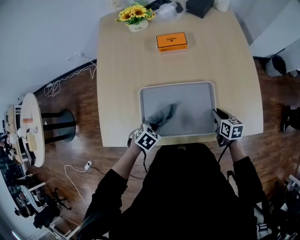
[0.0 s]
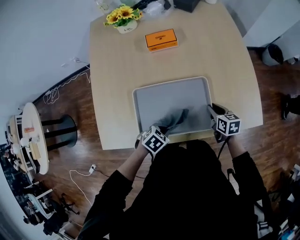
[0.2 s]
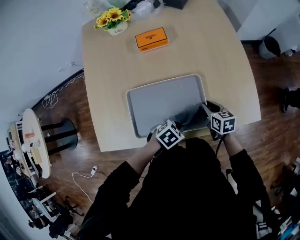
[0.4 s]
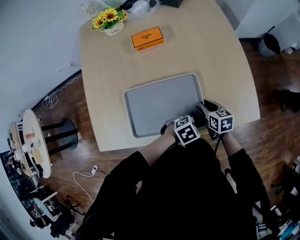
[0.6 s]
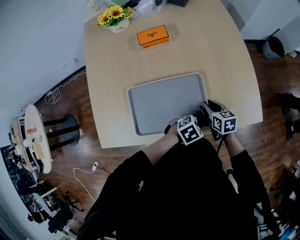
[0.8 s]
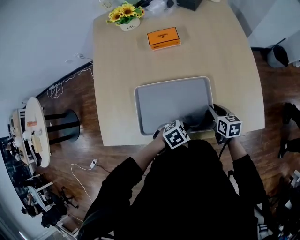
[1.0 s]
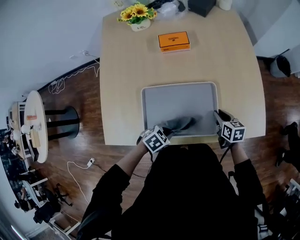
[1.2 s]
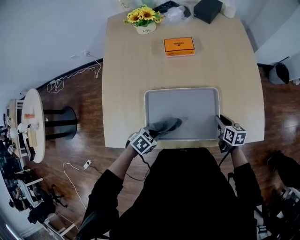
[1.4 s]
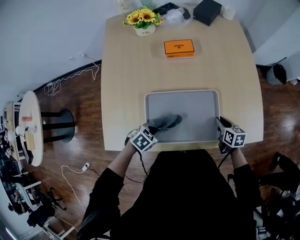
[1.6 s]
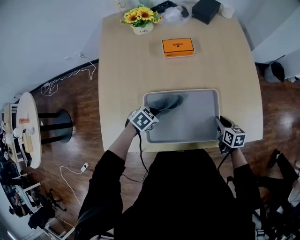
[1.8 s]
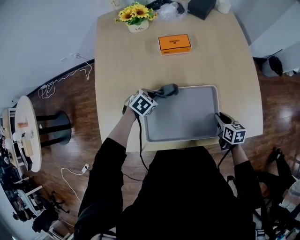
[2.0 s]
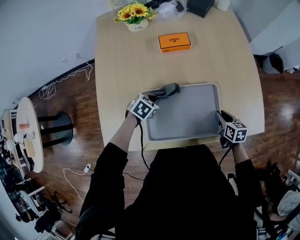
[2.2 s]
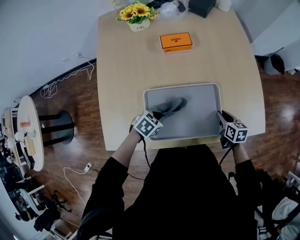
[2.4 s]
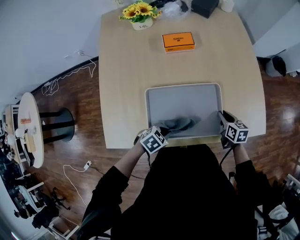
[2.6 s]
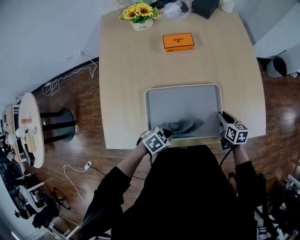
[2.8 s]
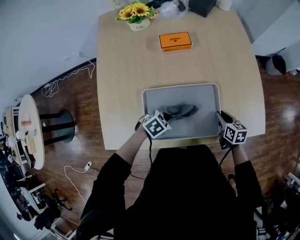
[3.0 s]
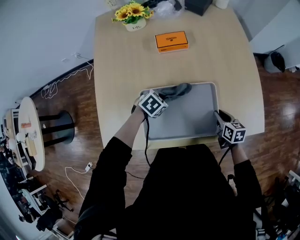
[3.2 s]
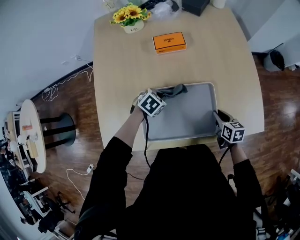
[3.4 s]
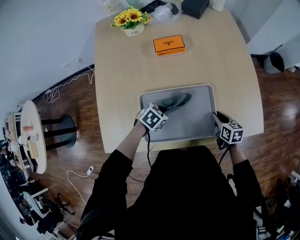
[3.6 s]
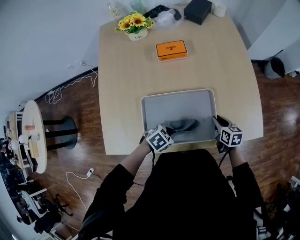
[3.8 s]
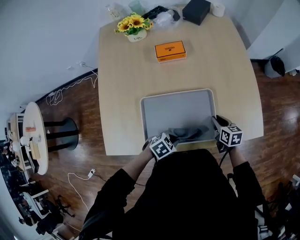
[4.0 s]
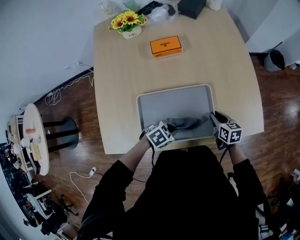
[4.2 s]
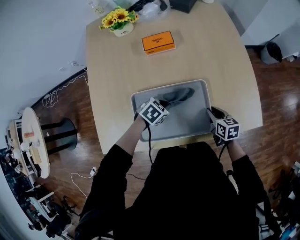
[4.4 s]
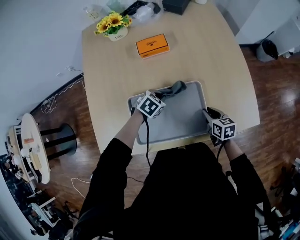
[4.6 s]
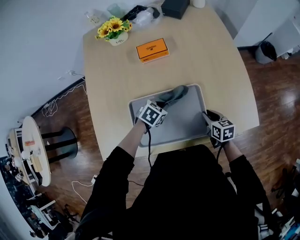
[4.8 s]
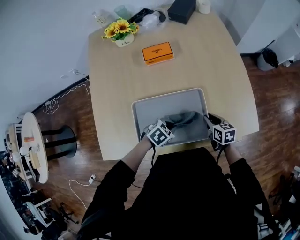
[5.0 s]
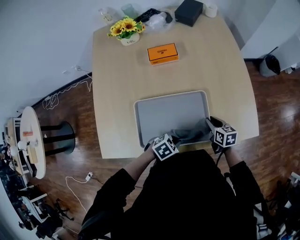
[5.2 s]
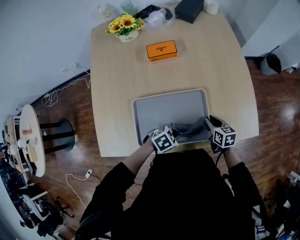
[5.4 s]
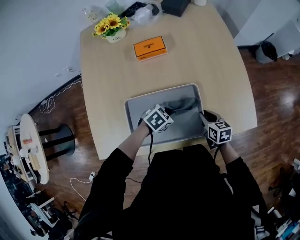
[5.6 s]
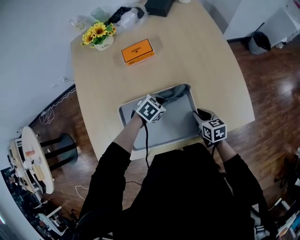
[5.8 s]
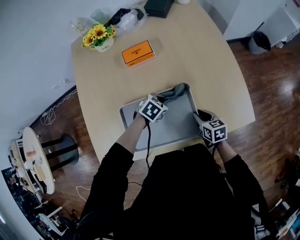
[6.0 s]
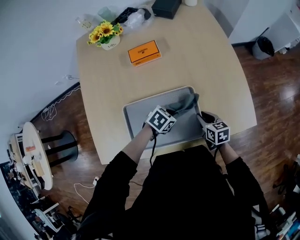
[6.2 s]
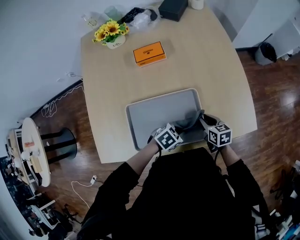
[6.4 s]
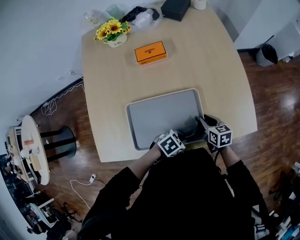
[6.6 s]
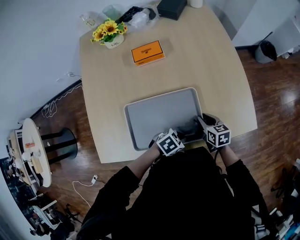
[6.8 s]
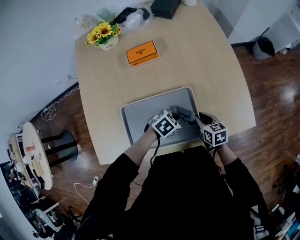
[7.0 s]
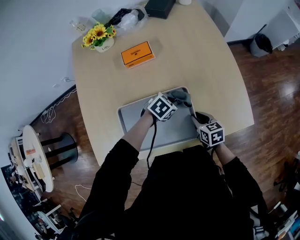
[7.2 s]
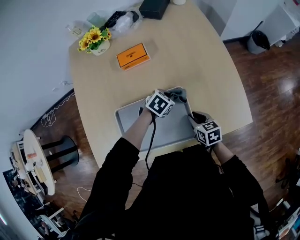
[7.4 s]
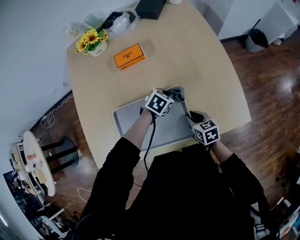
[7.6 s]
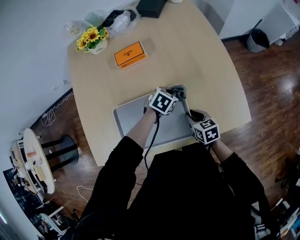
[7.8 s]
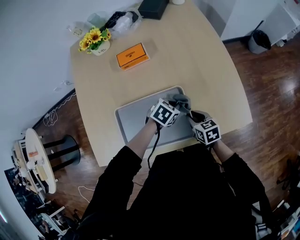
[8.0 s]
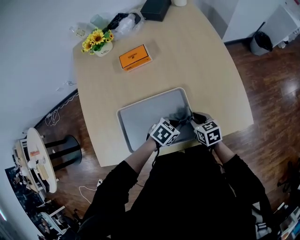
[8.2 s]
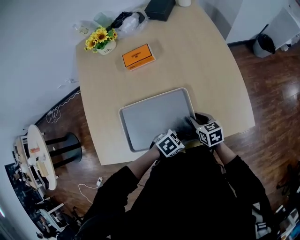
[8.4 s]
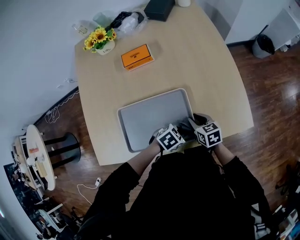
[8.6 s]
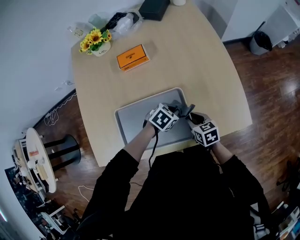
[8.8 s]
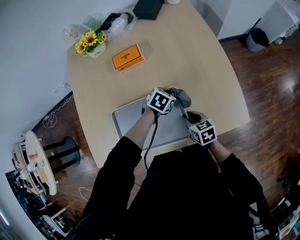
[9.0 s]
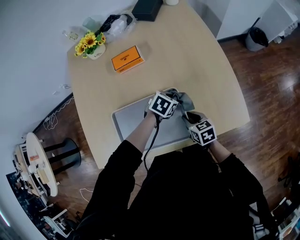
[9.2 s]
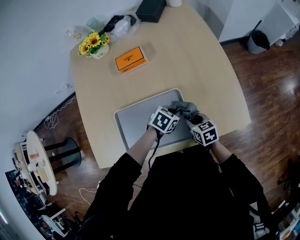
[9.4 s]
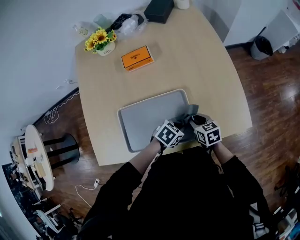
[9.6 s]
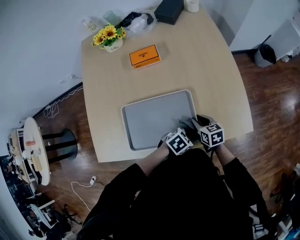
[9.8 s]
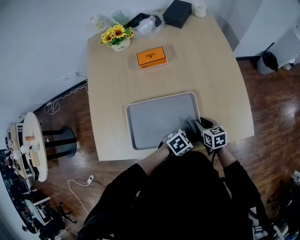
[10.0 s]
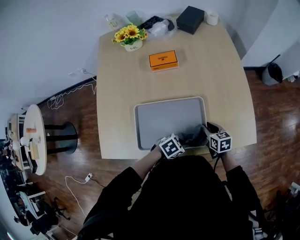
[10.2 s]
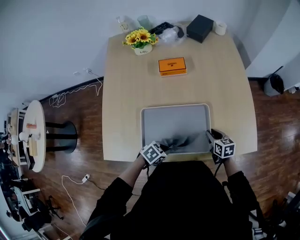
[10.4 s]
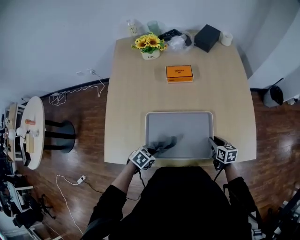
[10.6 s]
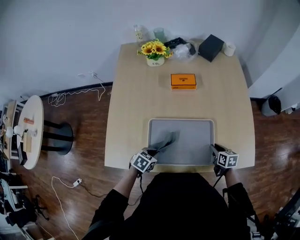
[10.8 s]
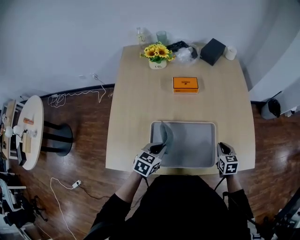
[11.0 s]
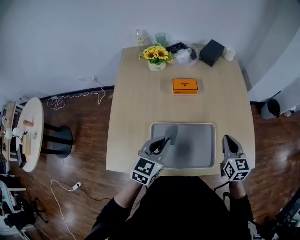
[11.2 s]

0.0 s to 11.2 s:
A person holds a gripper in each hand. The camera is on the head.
1.6 to 3.2 s: The left gripper moves forward and backward over about 15 cm, changing direction 2 times.
3.2 to 4.8 s: The left gripper travels to the right by about 5 cm, and goes backward and returns, about 15 cm each way.
4.8 to 6.4 s: The left gripper moves roughly 15 cm.
6.4 to 8.0 s: The left gripper ends up approximately 15 cm from where it was.
9.6 to 11.2 s: The left gripper moves approximately 35 cm, and tilts its fingers roughly 30 degrees upward. The right gripper travels upward by approximately 20 cm, turns by about 30 degrees, and closes.

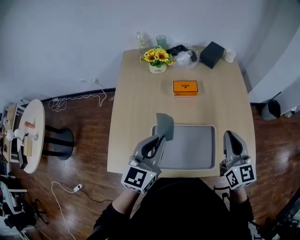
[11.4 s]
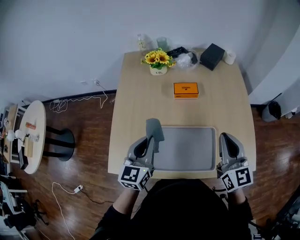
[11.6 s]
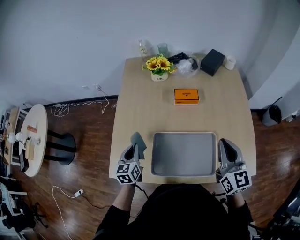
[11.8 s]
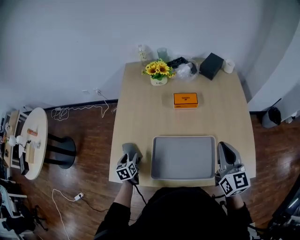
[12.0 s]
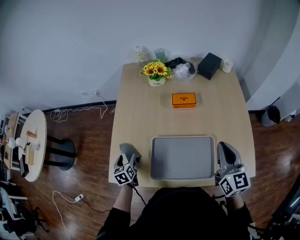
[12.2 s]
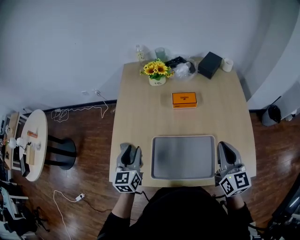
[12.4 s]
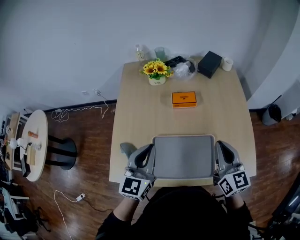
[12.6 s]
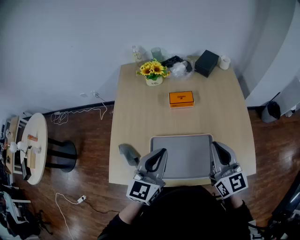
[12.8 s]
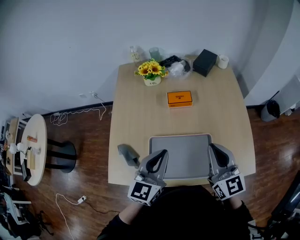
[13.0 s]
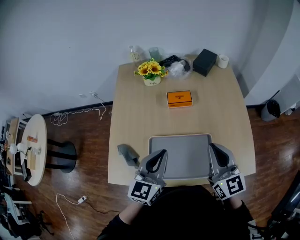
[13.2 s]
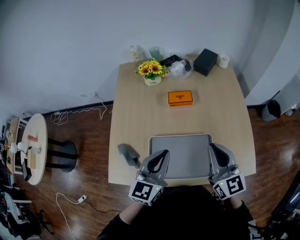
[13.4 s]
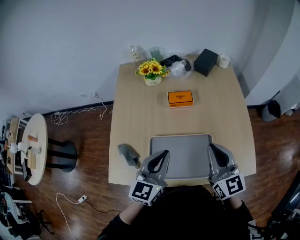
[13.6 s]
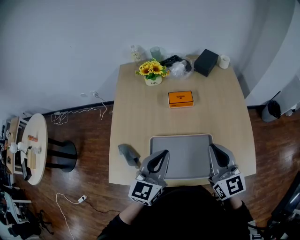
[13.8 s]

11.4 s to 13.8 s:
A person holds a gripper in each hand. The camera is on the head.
11.4 to 12.6 s: The left gripper reaches roughly 30 cm downward, then returns, and opens, then closes again.
12.6 to 13.8 s: The left gripper heads to the right, covering about 5 cm.

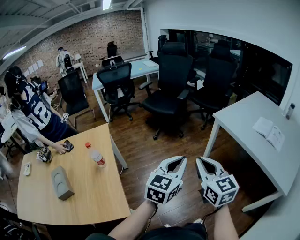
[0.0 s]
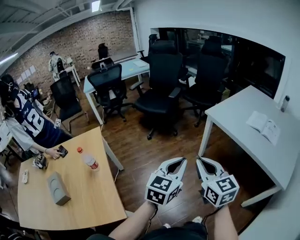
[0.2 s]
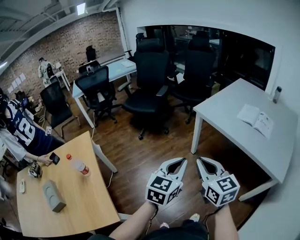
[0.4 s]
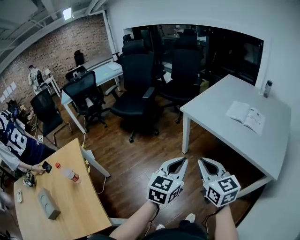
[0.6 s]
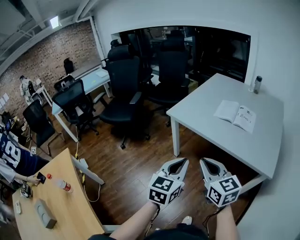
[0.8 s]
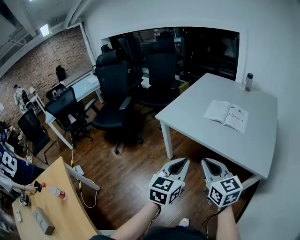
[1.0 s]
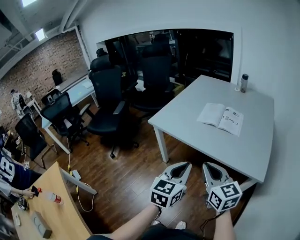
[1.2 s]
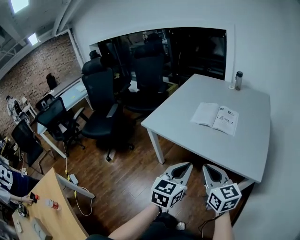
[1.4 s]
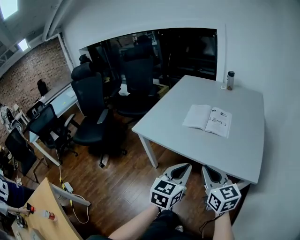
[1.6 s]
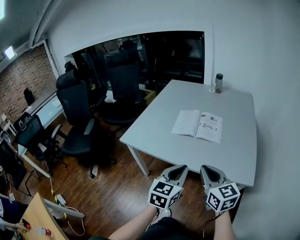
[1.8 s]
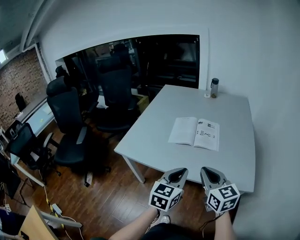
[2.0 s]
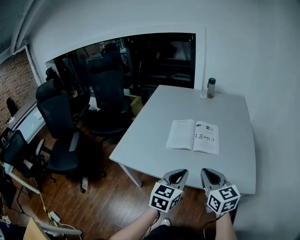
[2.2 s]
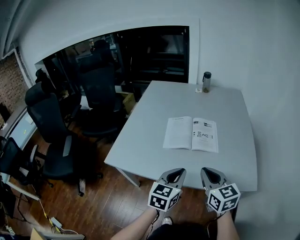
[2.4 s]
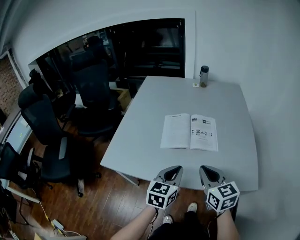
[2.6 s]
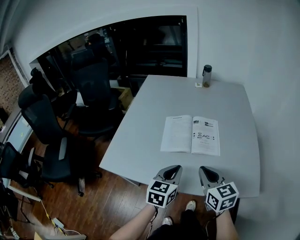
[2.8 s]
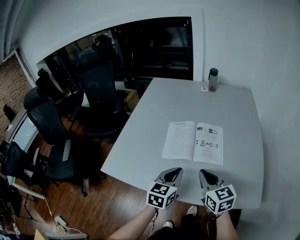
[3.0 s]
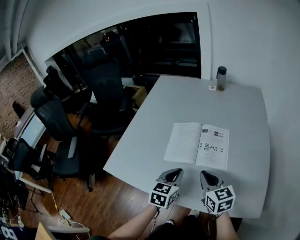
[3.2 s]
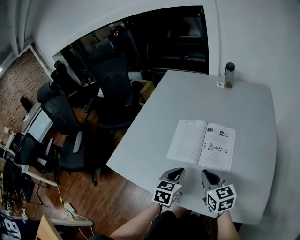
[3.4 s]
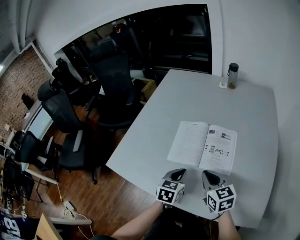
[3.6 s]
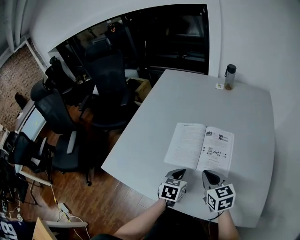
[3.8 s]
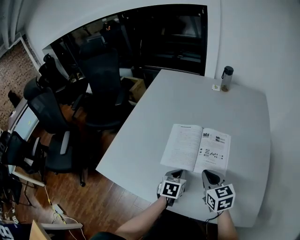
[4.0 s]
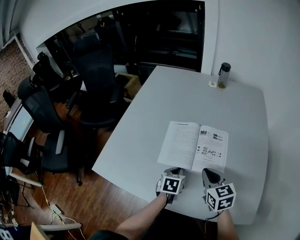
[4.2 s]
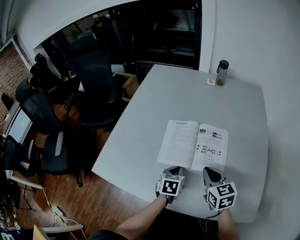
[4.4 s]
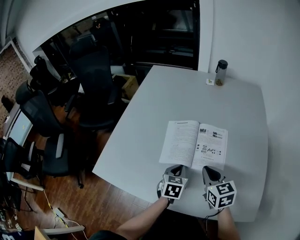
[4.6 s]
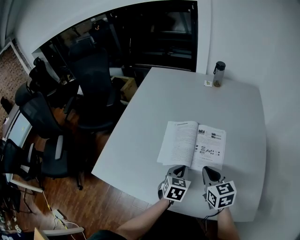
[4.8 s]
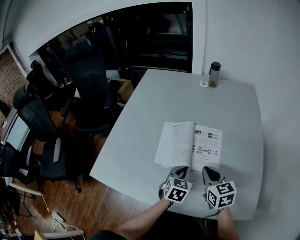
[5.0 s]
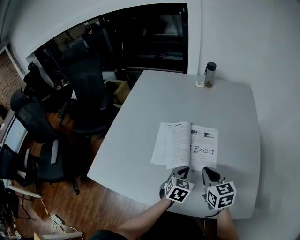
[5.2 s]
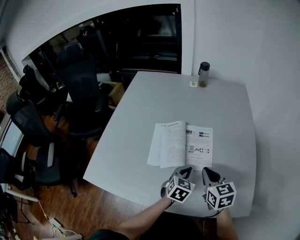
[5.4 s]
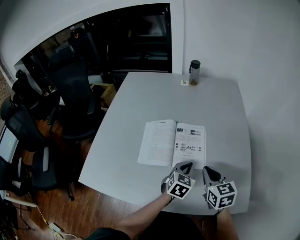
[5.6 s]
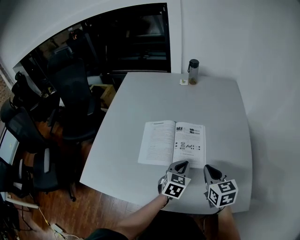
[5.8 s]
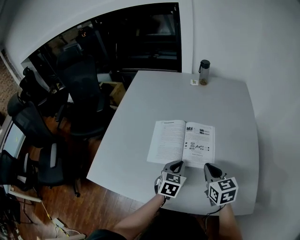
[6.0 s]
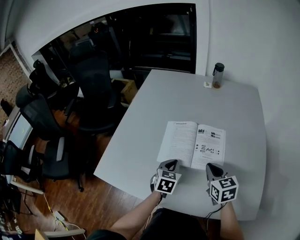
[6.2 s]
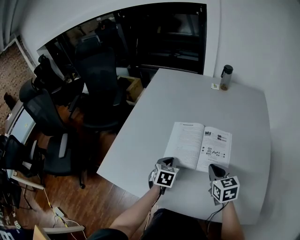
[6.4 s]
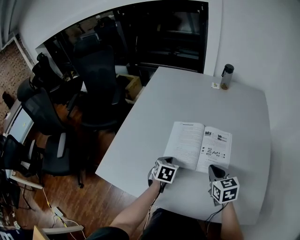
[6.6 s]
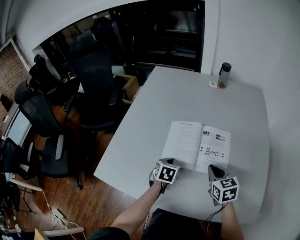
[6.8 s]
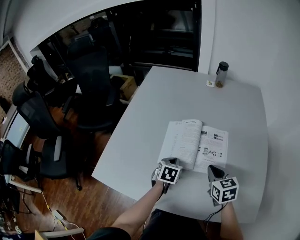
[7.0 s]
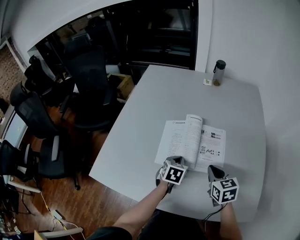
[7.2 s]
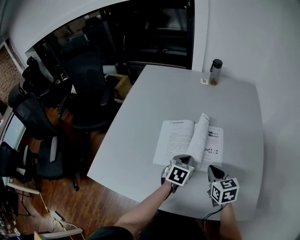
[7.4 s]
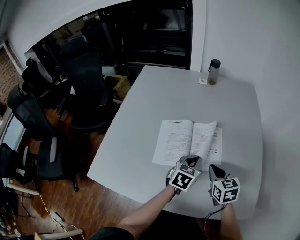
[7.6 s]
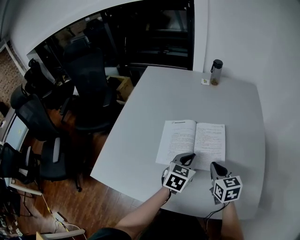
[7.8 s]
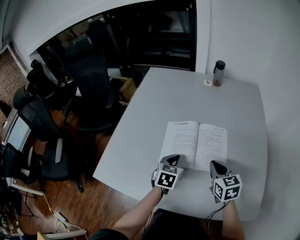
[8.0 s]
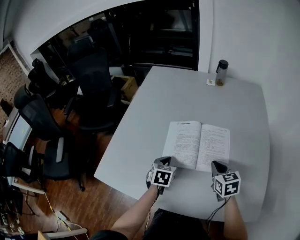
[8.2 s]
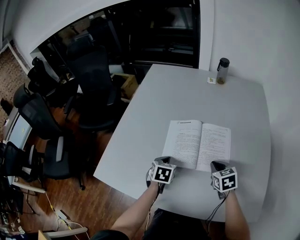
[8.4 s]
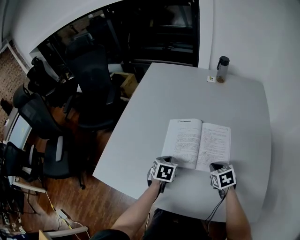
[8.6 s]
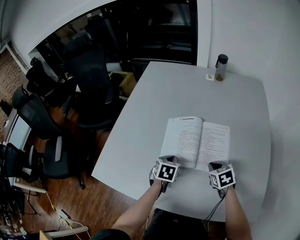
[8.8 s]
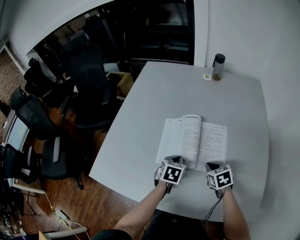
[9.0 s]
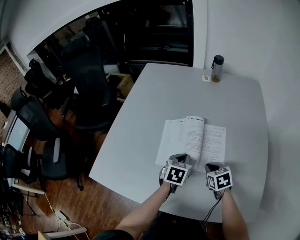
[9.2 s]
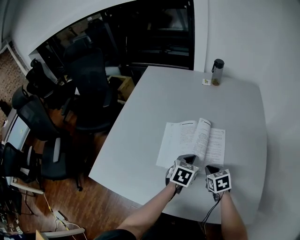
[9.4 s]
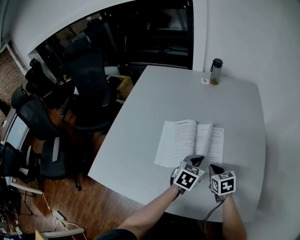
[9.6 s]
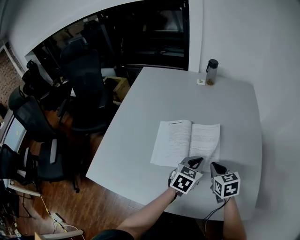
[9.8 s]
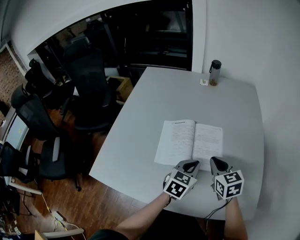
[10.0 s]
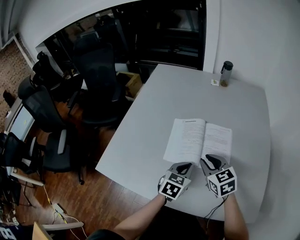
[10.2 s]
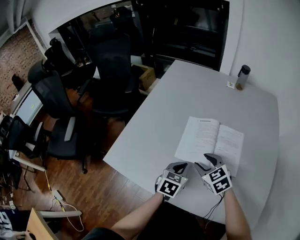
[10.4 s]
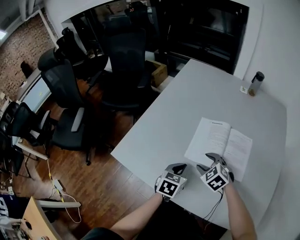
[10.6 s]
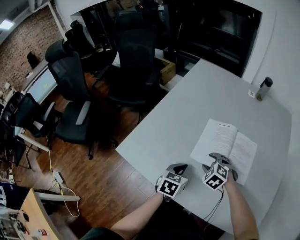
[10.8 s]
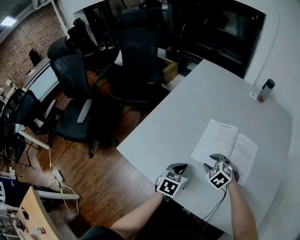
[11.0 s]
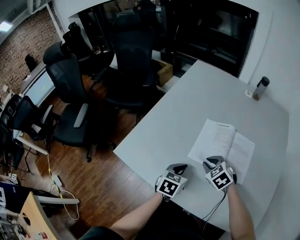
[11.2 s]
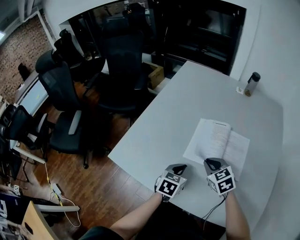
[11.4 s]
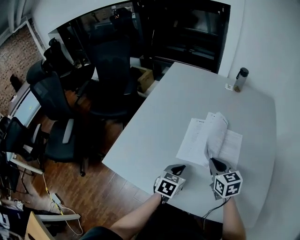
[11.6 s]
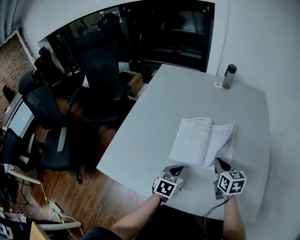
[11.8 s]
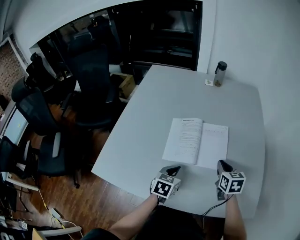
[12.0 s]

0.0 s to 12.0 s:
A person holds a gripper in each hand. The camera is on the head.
0.0 to 1.6 s: Both grippers are carried roughly 50 cm. The right gripper swivels some 30 degrees. Meanwhile the left gripper changes its angle by approximately 30 degrees.
1.6 to 3.0 s: Both grippers travel together forward, some 25 cm.
3.0 to 4.4 s: The right gripper is displaced forward and downward by roughly 10 cm; the left gripper heads downward and forward, covering roughly 15 cm, and rotates some 30 degrees.
4.4 to 6.0 s: The left gripper goes some 10 cm to the right and upward. The right gripper is displaced to the right by some 5 cm.
6.0 to 7.6 s: The left gripper travels to the left and back again, roughly 15 cm each way.
7.6 to 9.0 s: The left gripper goes approximately 10 cm to the left and downward, and rotates about 20 degrees. Meanwhile the right gripper travels downward by roughly 10 cm, and changes its angle by roughly 20 degrees.
9.0 to 10.4 s: The left gripper is displaced backward and upward by roughly 10 cm, and goes to the right and returns, approximately 10 cm each way. Meanwhile the right gripper shifts about 15 cm to the left and upward, changes its angle by some 30 degrees, and opens.
10.4 to 12.0 s: The right gripper goes downward and returns, approximately 5 cm each way, swivels about 40 degrees, and closes.
